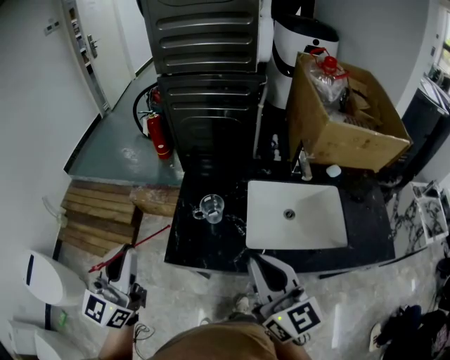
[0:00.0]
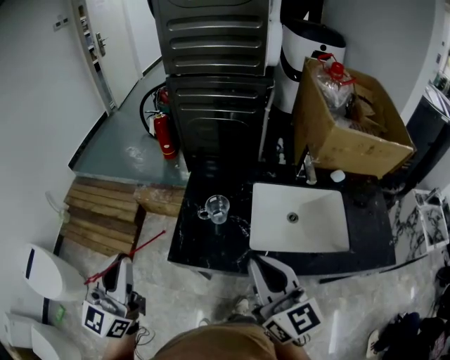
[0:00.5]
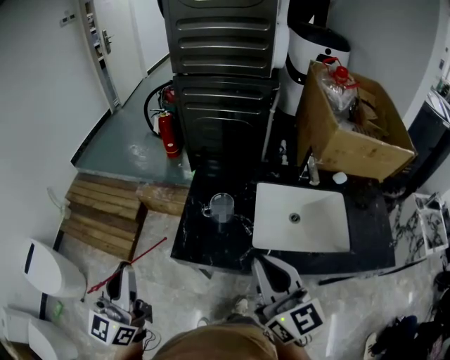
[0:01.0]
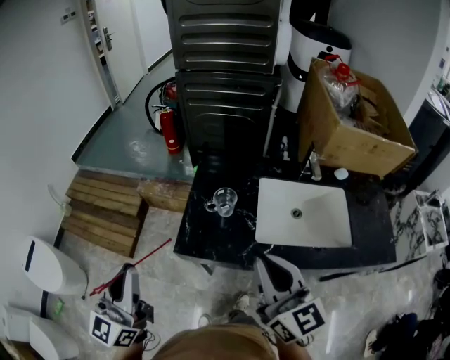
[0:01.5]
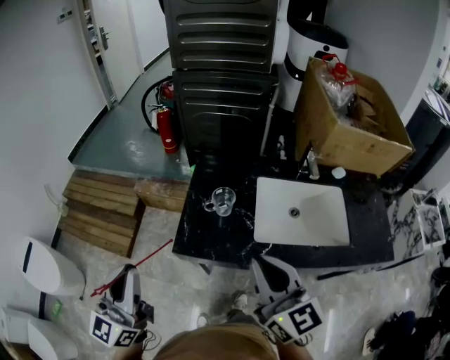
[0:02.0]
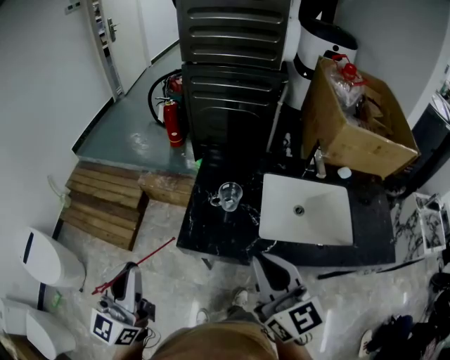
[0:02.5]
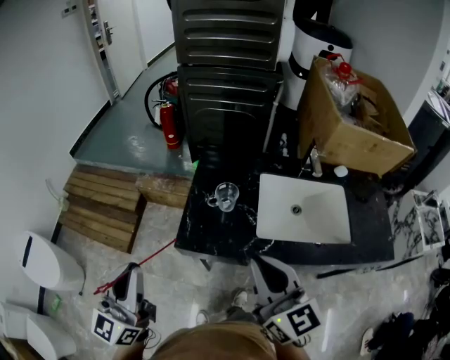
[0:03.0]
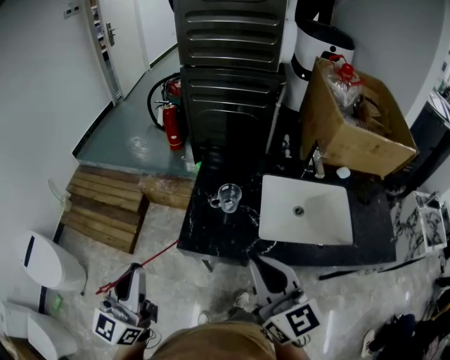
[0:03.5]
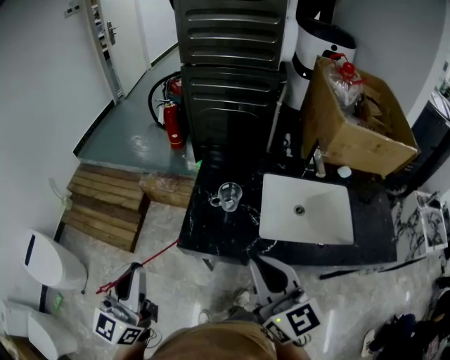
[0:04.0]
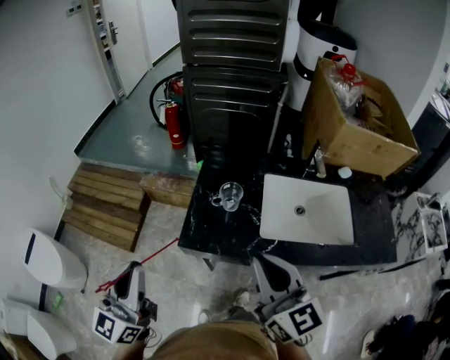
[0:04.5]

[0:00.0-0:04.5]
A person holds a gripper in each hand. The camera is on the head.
0:00.0 to 0:02.0: The left gripper heads backward, covering some 10 cm.
0:02.0 to 0:04.5: The grippers move only a little.

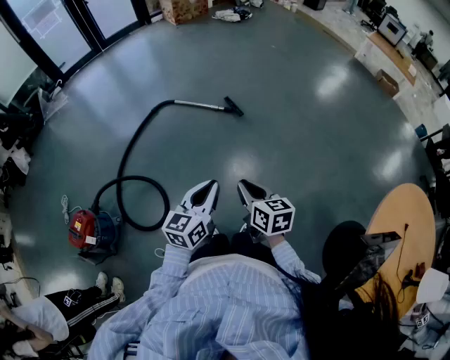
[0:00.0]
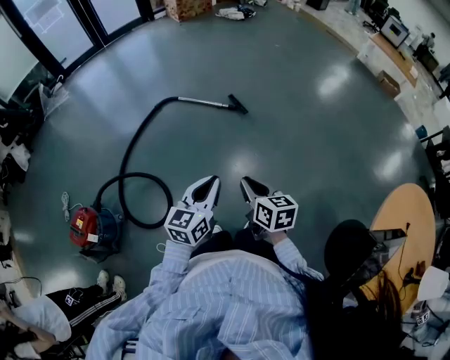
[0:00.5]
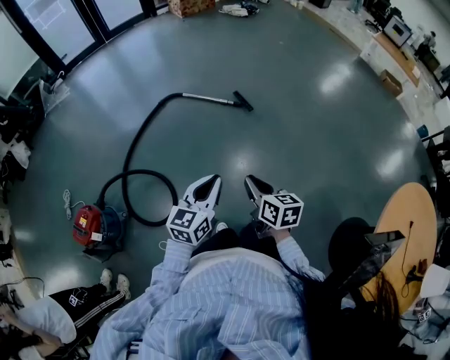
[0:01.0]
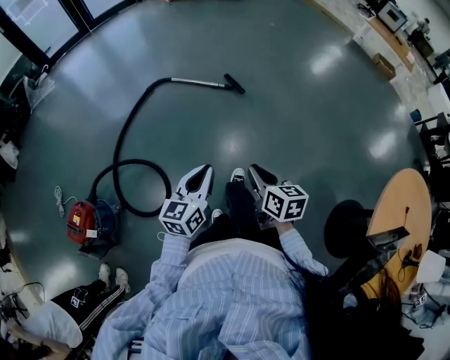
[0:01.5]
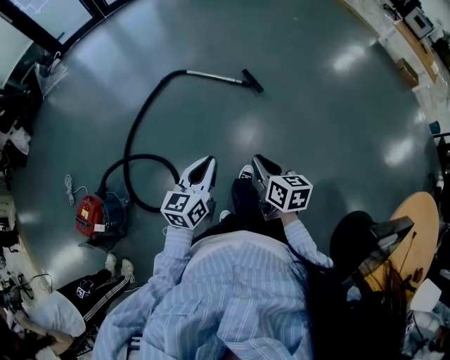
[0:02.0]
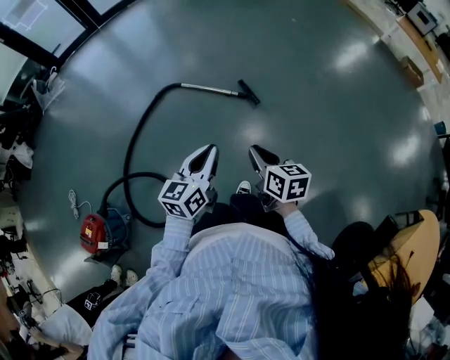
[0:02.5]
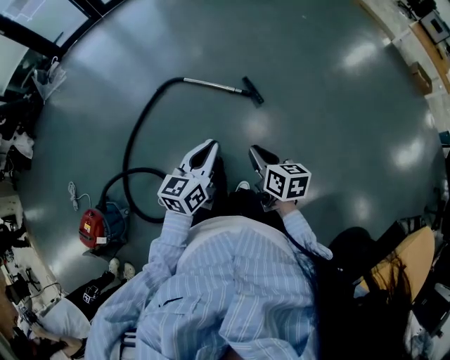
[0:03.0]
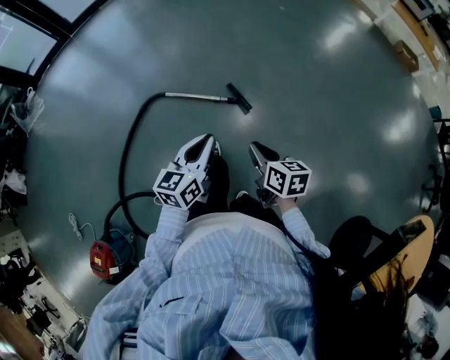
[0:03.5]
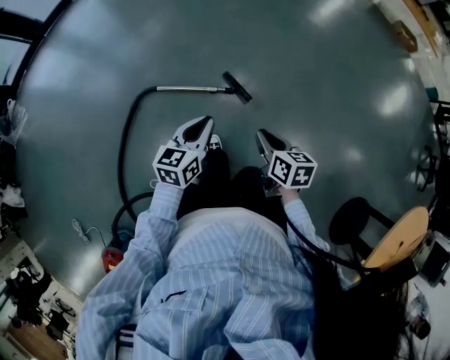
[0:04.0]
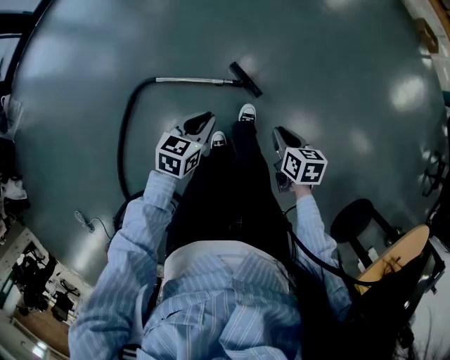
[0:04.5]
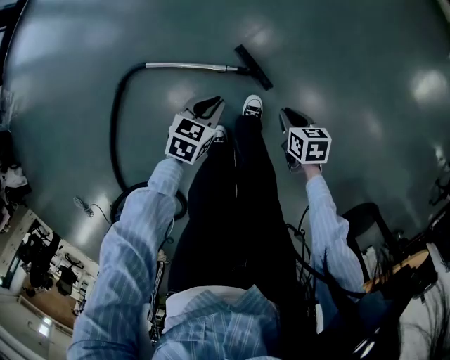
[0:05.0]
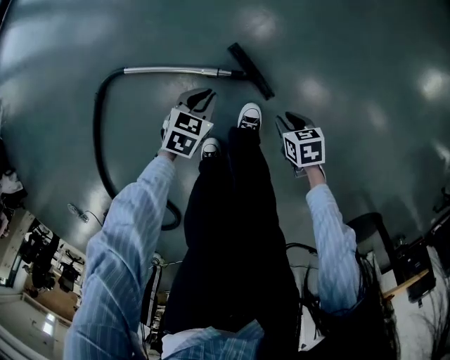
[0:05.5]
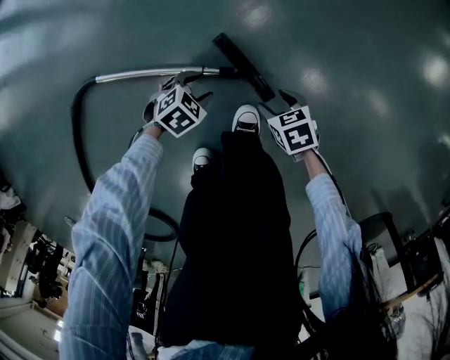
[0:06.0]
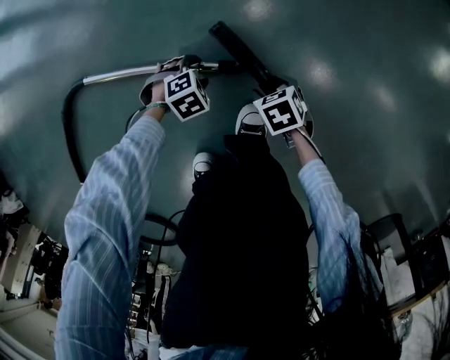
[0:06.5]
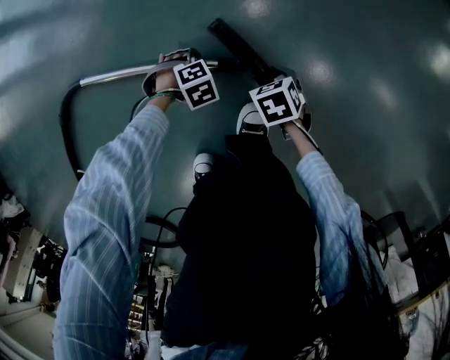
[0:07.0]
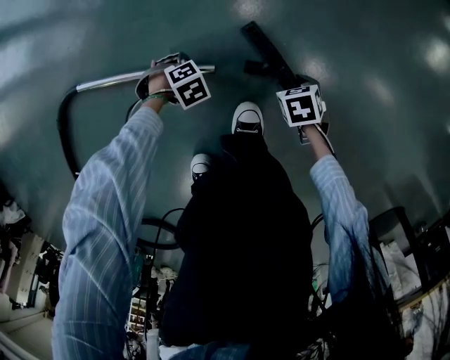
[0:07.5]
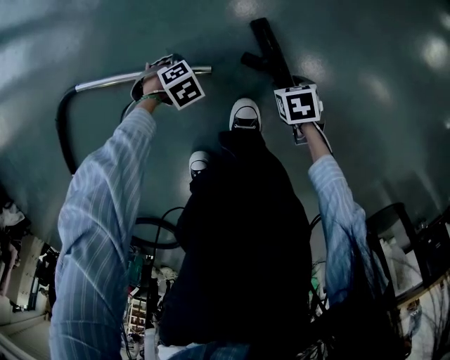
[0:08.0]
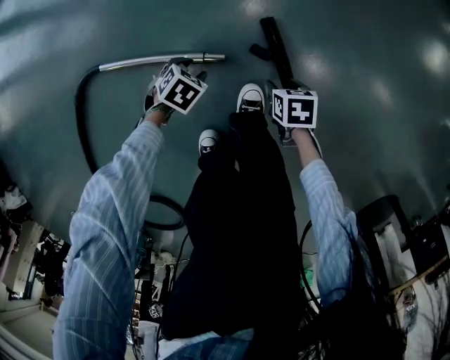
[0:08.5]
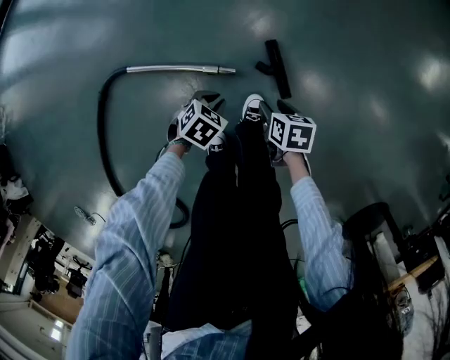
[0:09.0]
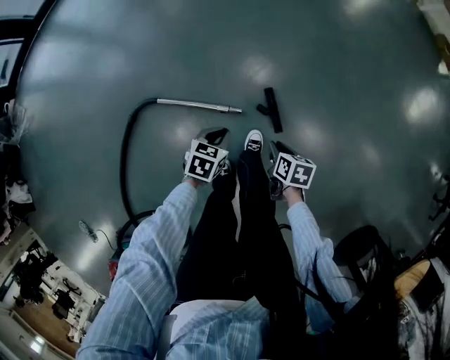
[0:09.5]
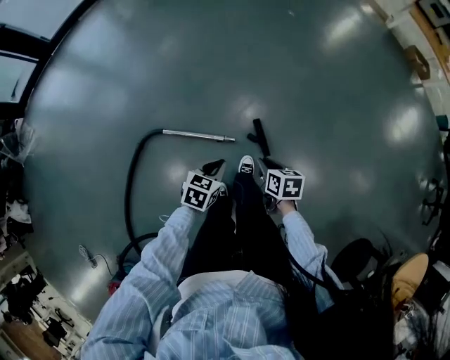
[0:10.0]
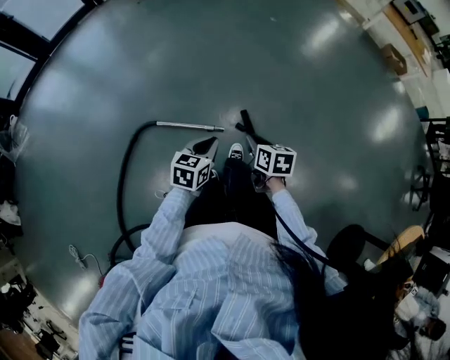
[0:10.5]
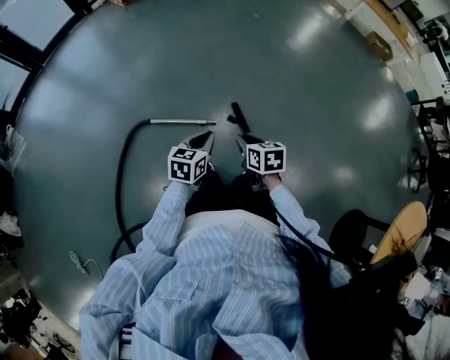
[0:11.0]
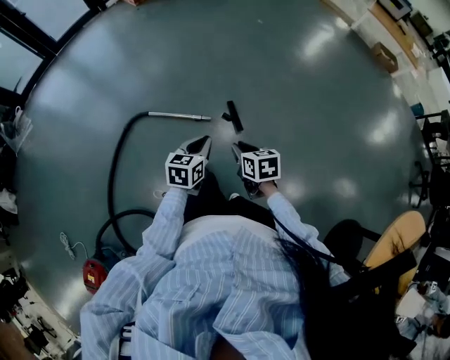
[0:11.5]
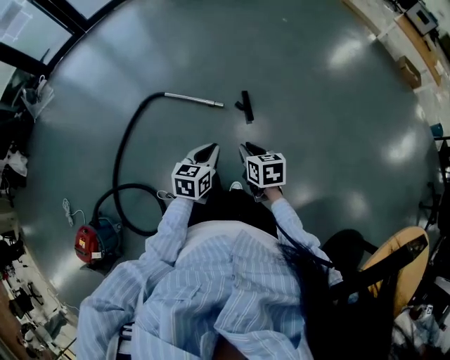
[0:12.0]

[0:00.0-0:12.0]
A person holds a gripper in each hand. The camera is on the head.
0:00.0 to 0:02.0: The grippers both shift forward, to the left and downward by some 15 cm.
0:02.0 to 0:04.0: The pair of grippers is taken forward, some 50 cm. The left gripper turns by some 20 degrees.
0:04.0 to 0:06.0: Both grippers travel together downward, approximately 70 cm. The right gripper changes its angle by roughly 40 degrees, and opens up. Meanwhile the left gripper tips its fingers downward by roughly 40 degrees, and opens its fingers.
0:06.0 to 0:08.0: The two grippers go about 10 cm downward. The left gripper turns by approximately 30 degrees.
0:08.0 to 0:10.0: Both grippers move upward, some 70 cm. The right gripper swivels about 30 degrees, and closes. The left gripper tips its fingers upward by approximately 40 degrees, and closes.
0:10.0 to 0:12.0: The two grippers go some 40 cm backward and upward. The right gripper changes its angle by roughly 20 degrees, while the left gripper swivels about 20 degrees.

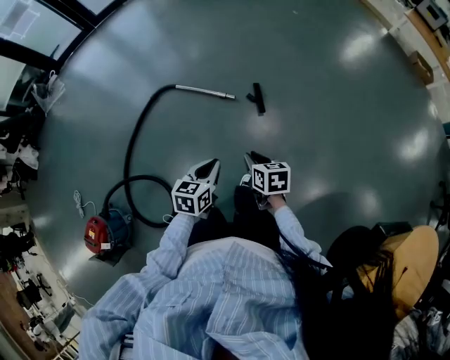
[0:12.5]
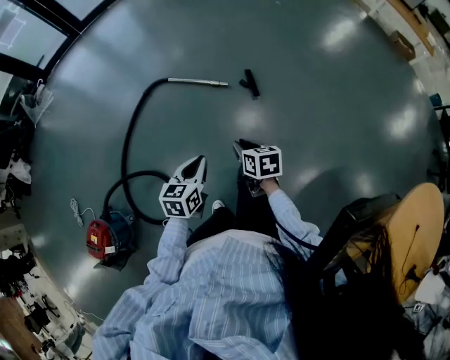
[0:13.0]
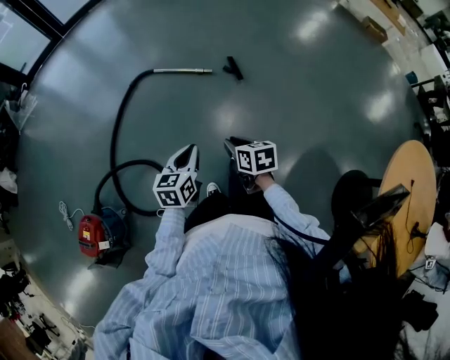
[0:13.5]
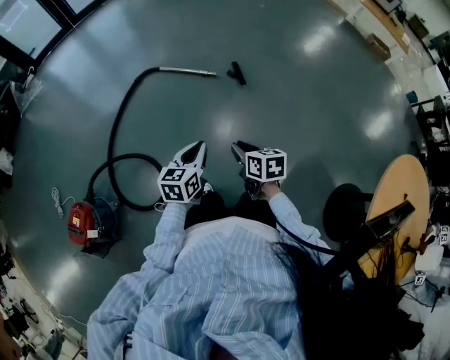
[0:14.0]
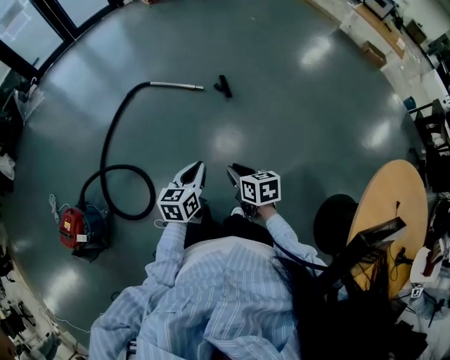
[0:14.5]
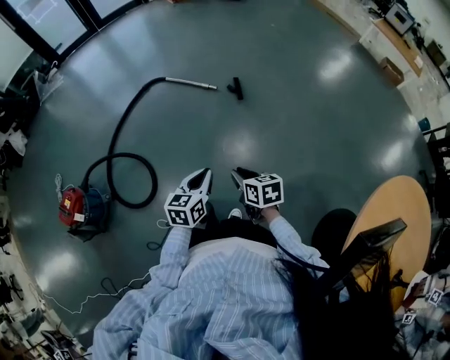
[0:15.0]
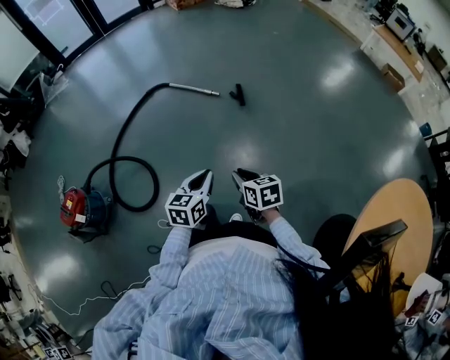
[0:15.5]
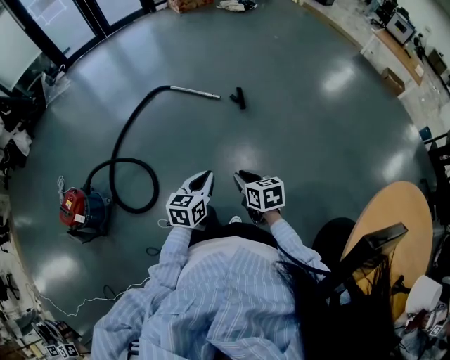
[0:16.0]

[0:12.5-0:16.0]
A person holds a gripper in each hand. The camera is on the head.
0:12.5 to 0:14.5: Both grippers travel together backward, some 35 cm.
0:14.5 to 0:16.0: The left gripper goes some 10 cm backward and to the right. Meanwhile the right gripper shifts some 10 cm to the right and backward.

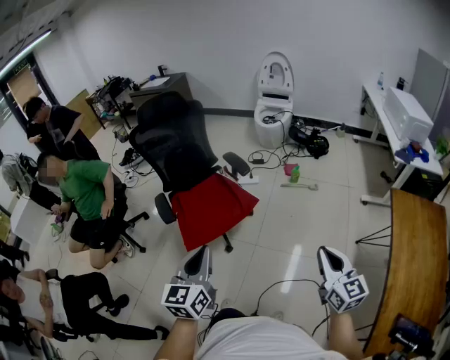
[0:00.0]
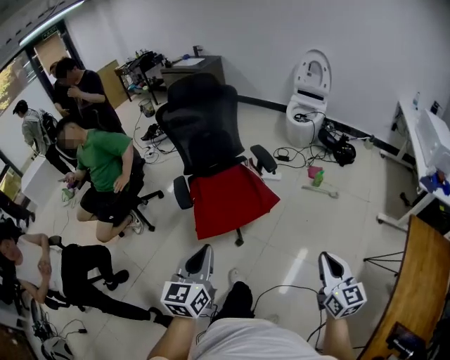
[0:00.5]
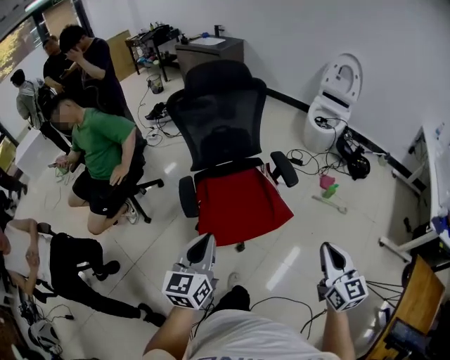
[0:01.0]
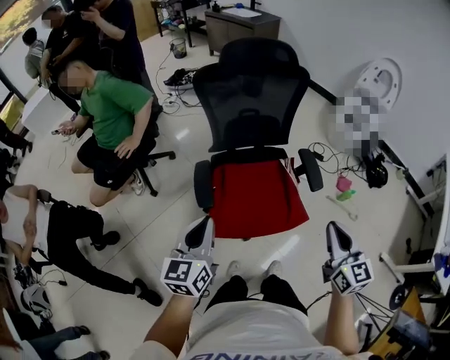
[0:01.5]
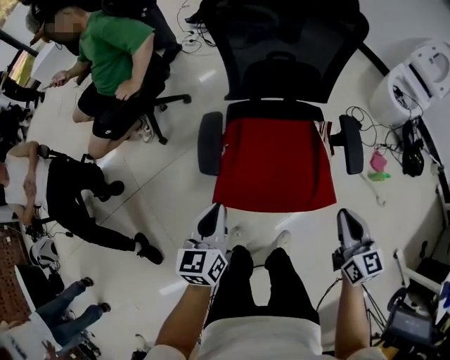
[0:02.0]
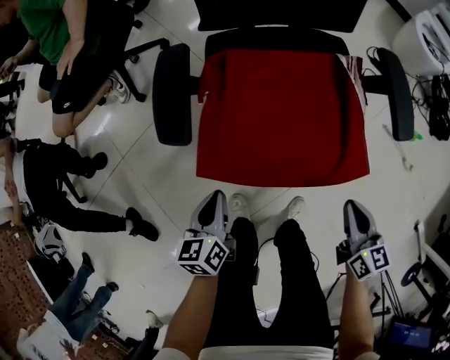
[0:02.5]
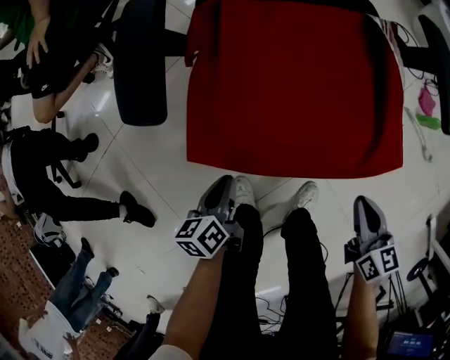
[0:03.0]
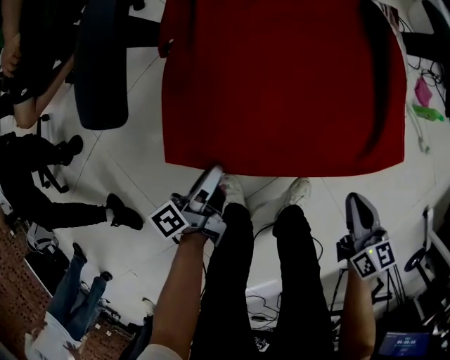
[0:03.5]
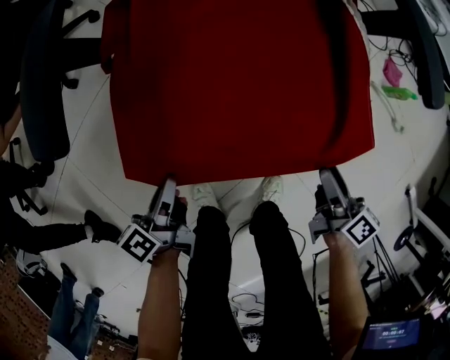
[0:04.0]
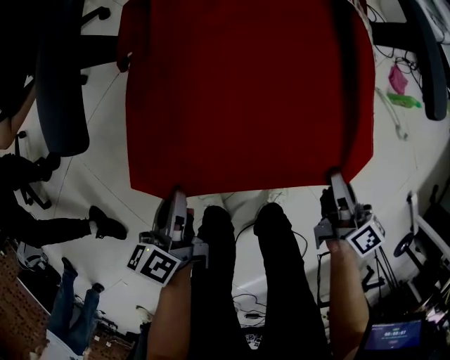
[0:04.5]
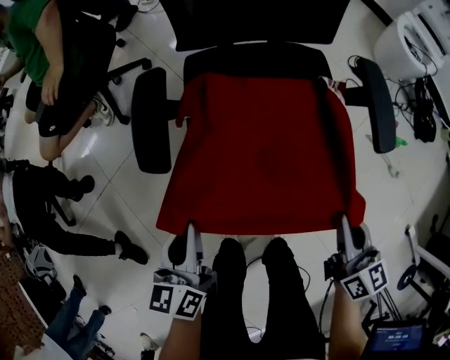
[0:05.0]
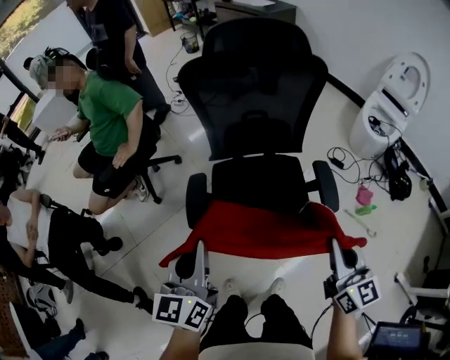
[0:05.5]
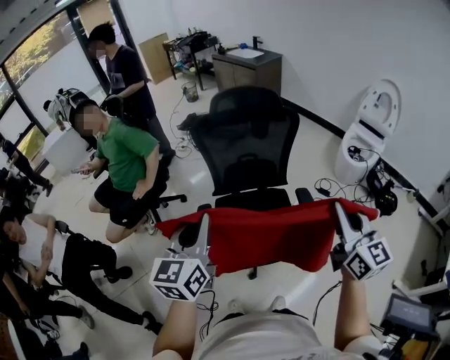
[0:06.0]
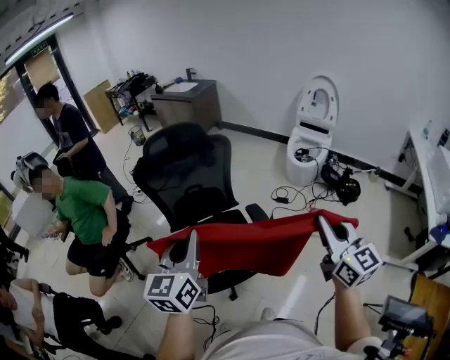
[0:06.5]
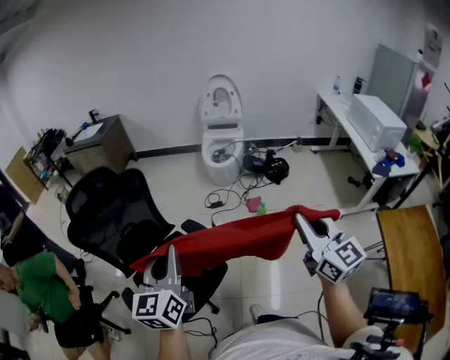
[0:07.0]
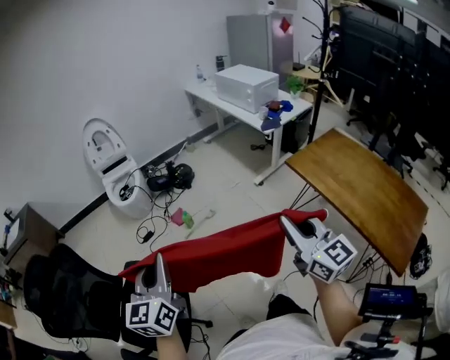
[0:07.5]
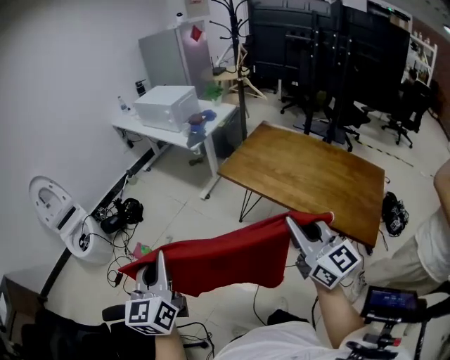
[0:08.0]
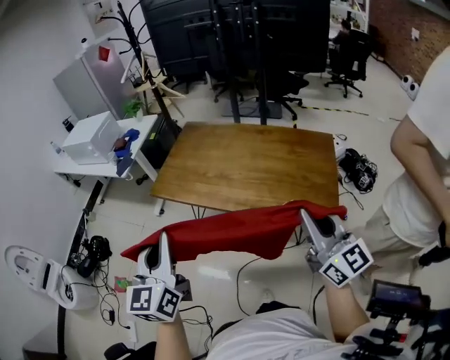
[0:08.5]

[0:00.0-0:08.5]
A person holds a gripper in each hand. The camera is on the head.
0:00.0 to 0:02.0: The right gripper changes place by roughly 50 cm, and swivels about 40 degrees; the left gripper shifts by approximately 40 cm, and swivels about 40 degrees.
0:02.0 to 0:04.0: Both grippers travel together downward, roughly 40 cm. The left gripper rolls counterclockwise, seen from behind, by some 50 degrees, and opens, then closes once more. The right gripper twists approximately 50 degrees clockwise, seen from behind, and opens its fingers.
0:04.0 to 0:06.5: The two grippers go some 70 cm upward. The left gripper twists some 60 degrees clockwise, seen from behind; the right gripper rotates around the line of its fingers by some 50 degrees, counterclockwise from behind, and closes up.
0:06.5 to 0:08.5: The two grippers travel together, approximately 80 cm. The left gripper rotates roughly 100 degrees; the right gripper changes its angle by about 100 degrees.
